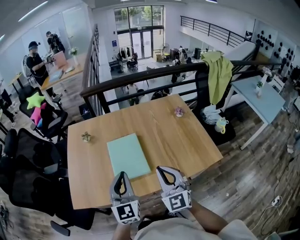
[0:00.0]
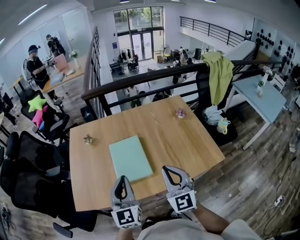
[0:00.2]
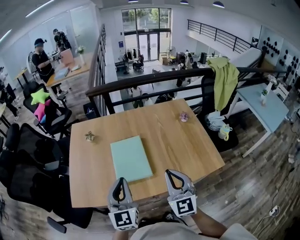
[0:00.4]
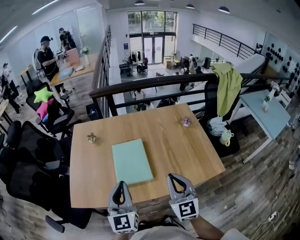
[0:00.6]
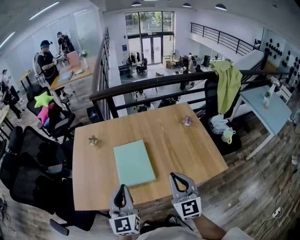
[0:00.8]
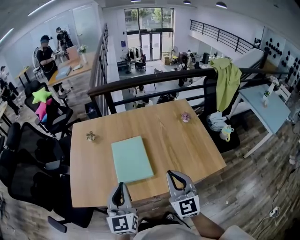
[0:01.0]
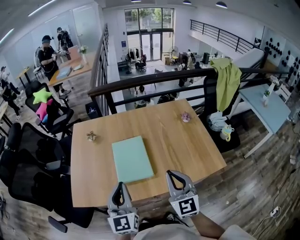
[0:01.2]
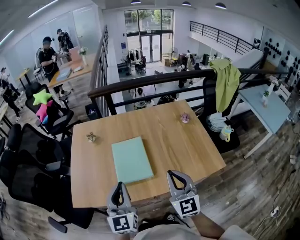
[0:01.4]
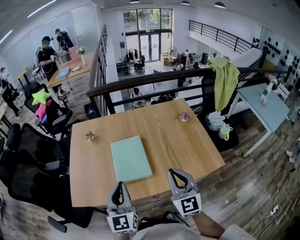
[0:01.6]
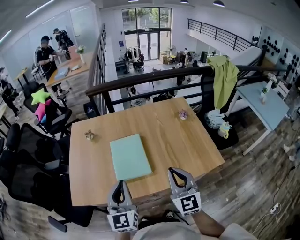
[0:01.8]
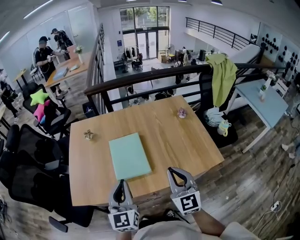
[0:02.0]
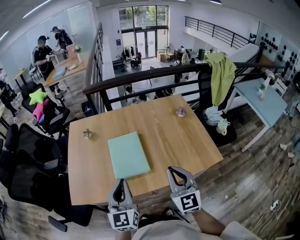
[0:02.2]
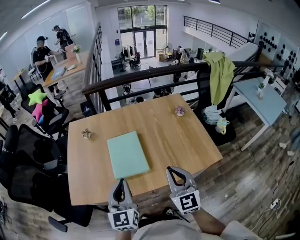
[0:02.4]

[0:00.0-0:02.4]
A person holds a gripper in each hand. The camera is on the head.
0.0 to 2.4 s: There are only small adjustments of the grippers.

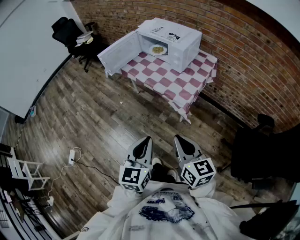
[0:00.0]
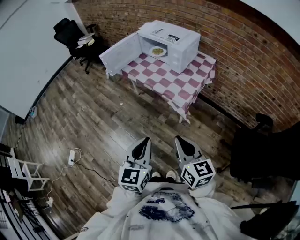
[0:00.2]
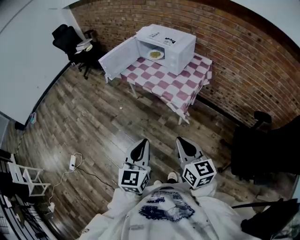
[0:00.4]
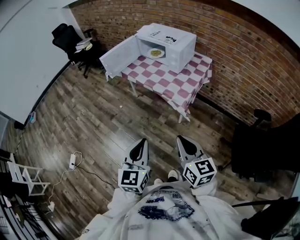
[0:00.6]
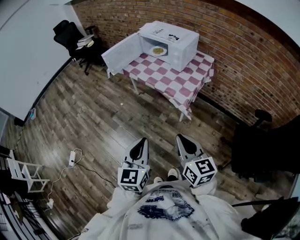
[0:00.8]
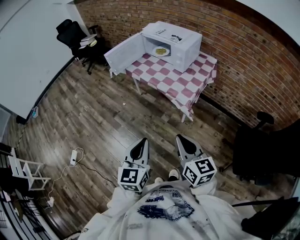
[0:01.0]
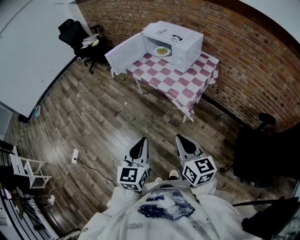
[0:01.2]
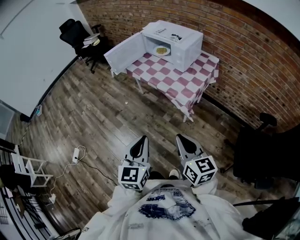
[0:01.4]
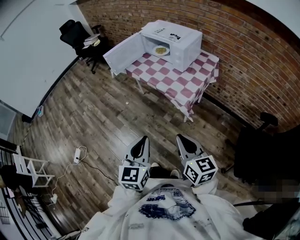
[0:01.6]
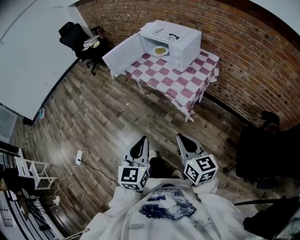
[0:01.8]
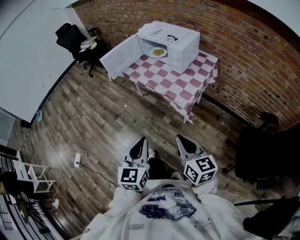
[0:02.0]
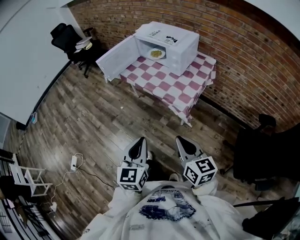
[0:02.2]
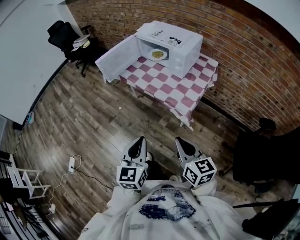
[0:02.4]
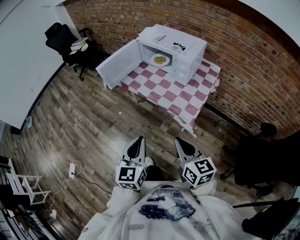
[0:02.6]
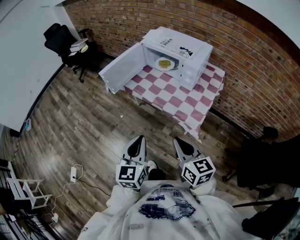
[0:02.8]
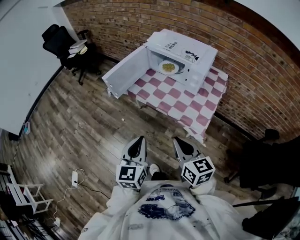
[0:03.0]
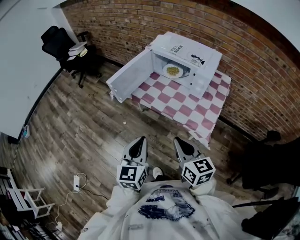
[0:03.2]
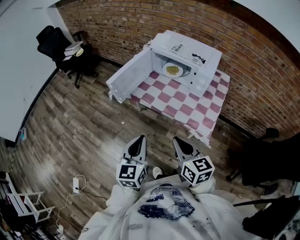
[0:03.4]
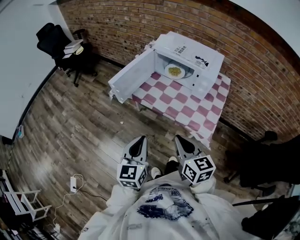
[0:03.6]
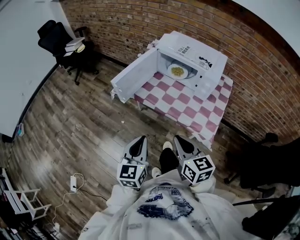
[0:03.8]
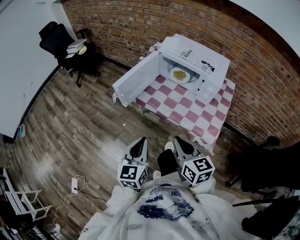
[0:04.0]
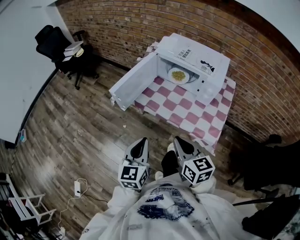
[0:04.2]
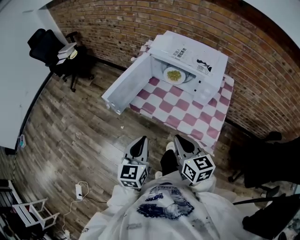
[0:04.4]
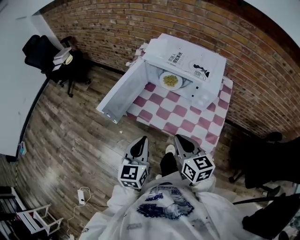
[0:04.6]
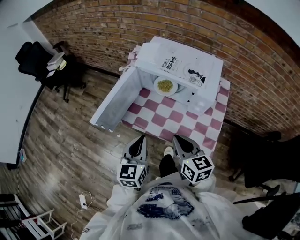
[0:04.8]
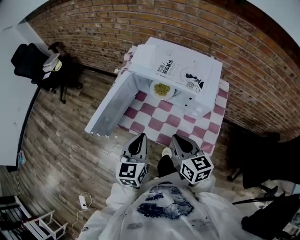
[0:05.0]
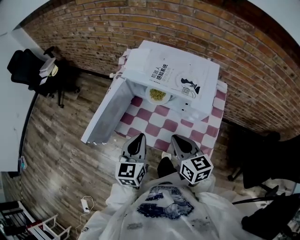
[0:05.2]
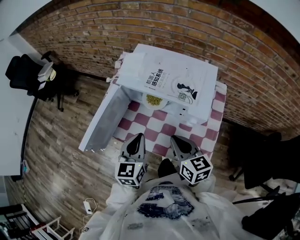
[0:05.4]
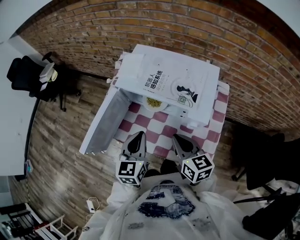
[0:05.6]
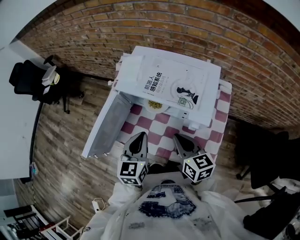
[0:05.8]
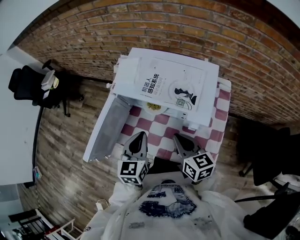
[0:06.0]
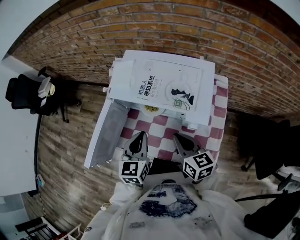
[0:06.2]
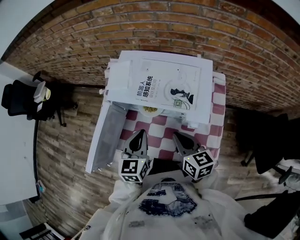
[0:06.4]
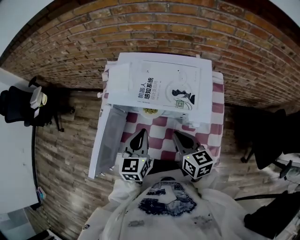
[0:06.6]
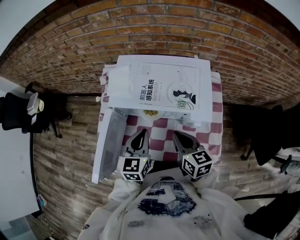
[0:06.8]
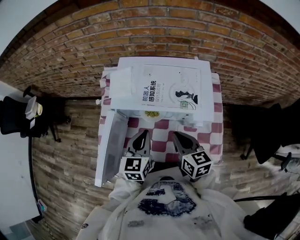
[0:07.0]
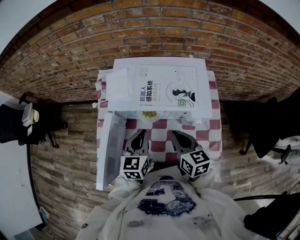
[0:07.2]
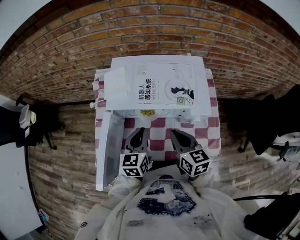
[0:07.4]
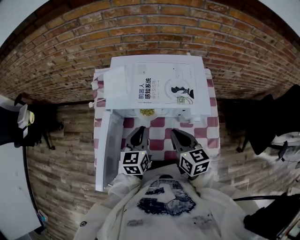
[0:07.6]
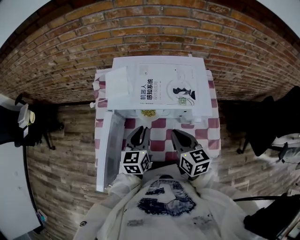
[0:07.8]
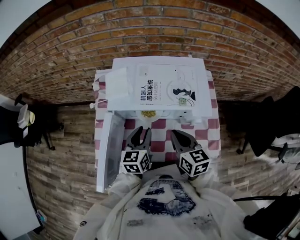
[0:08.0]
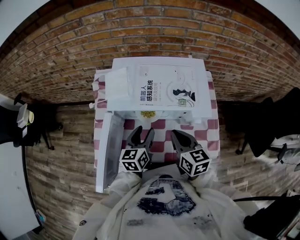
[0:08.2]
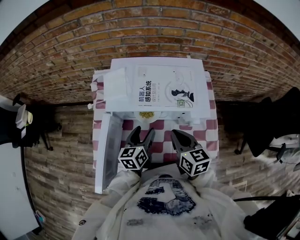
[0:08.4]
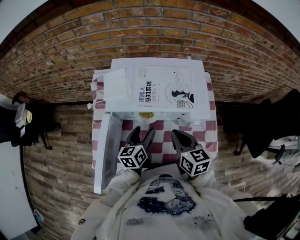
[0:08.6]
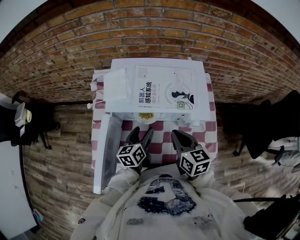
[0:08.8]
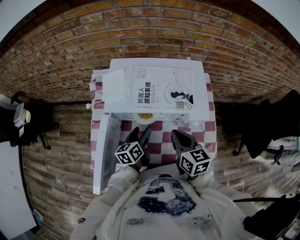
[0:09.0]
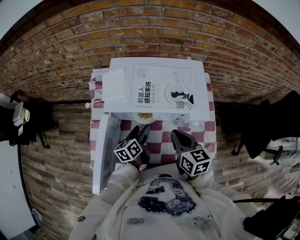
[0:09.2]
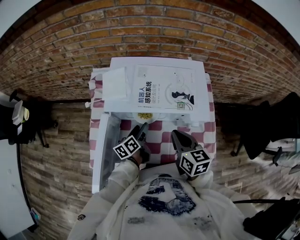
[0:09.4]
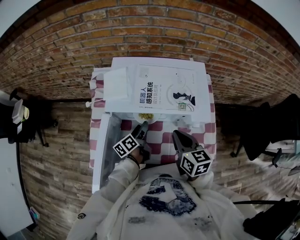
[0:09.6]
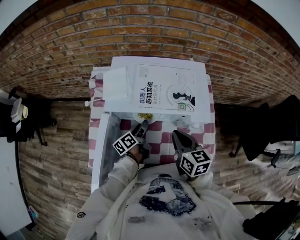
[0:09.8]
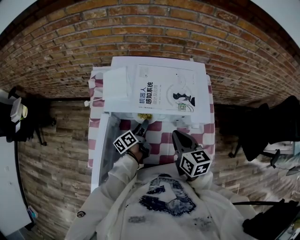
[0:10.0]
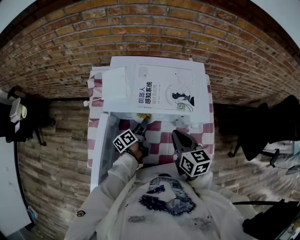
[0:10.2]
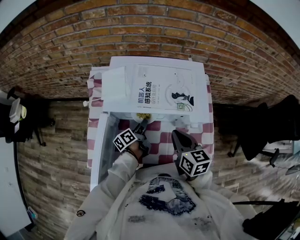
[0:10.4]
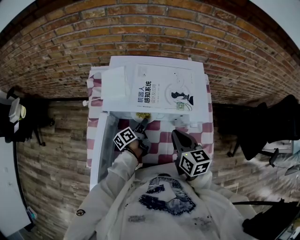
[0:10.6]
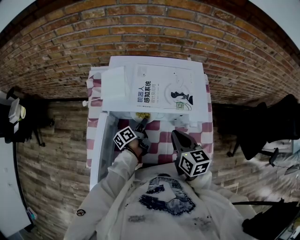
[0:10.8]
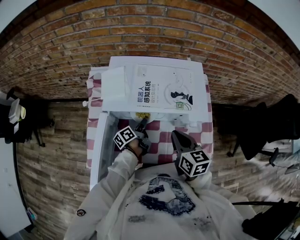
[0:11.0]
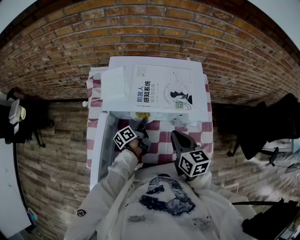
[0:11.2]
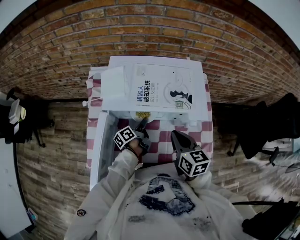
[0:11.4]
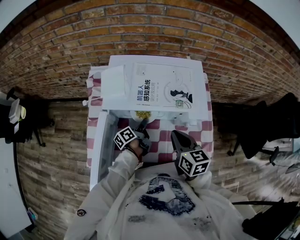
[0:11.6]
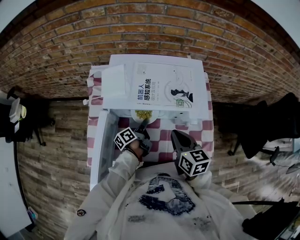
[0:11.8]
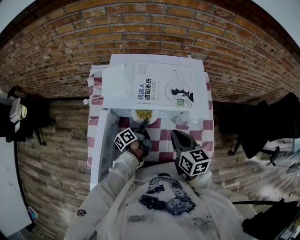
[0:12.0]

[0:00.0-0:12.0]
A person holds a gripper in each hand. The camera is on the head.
1.6 to 3.0 s: Both grippers travel together forward and to the left, approximately 30 cm.
3.0 to 4.4 s: The grippers both shift forward by approximately 15 cm.
4.4 to 6.0 s: The two grippers go some 30 cm forward and to the right.
6.0 to 7.6 s: The right gripper moves approximately 5 cm, and turns by about 20 degrees. Meanwhile the left gripper heads forward and downward, covering roughly 10 cm.
7.6 to 9.0 s: The left gripper goes about 10 cm downward, changes its angle by approximately 30 degrees, and opens.
9.0 to 10.4 s: The left gripper shifts roughly 5 cm downward, and swivels some 30 degrees.
10.4 to 12.0 s: The left gripper closes up.

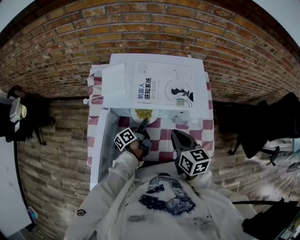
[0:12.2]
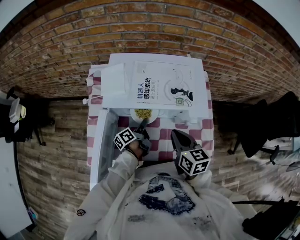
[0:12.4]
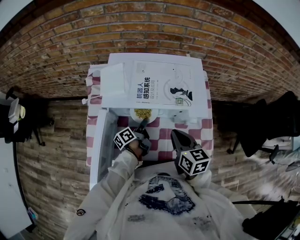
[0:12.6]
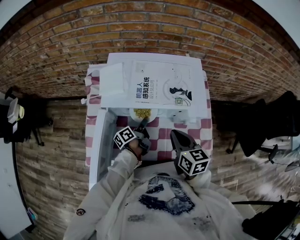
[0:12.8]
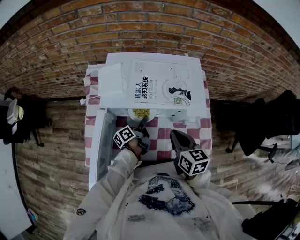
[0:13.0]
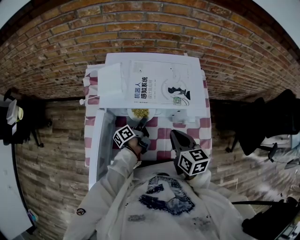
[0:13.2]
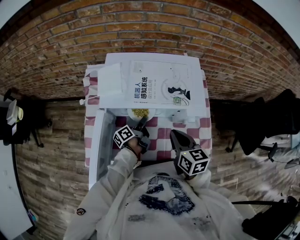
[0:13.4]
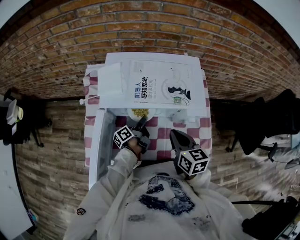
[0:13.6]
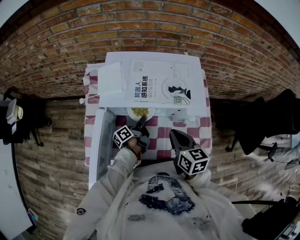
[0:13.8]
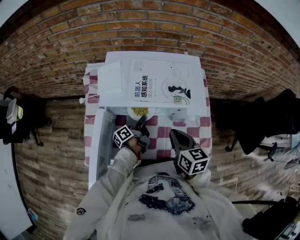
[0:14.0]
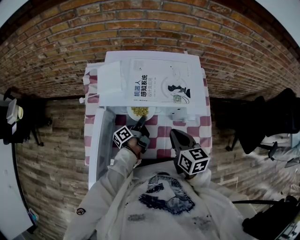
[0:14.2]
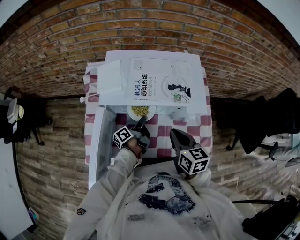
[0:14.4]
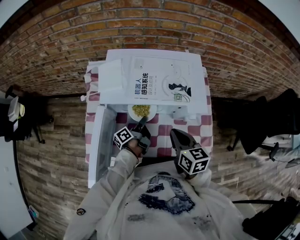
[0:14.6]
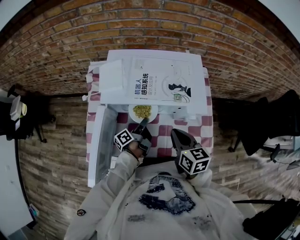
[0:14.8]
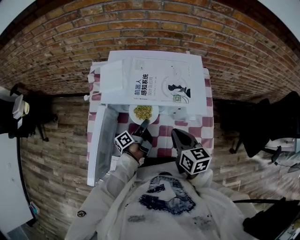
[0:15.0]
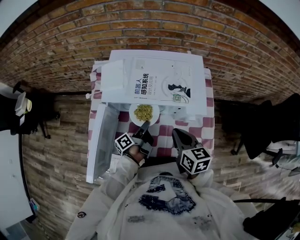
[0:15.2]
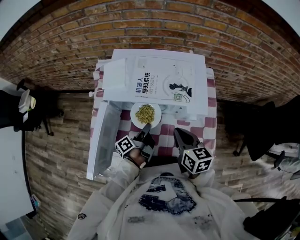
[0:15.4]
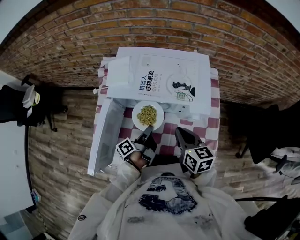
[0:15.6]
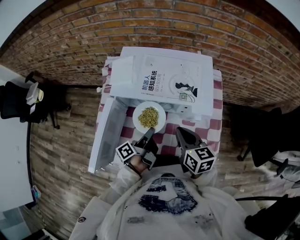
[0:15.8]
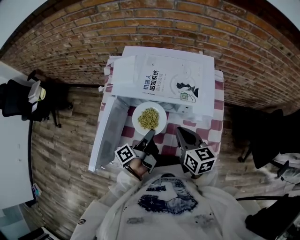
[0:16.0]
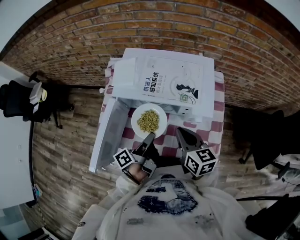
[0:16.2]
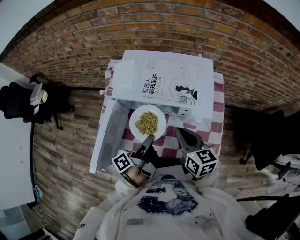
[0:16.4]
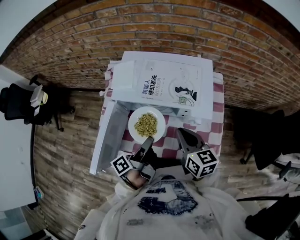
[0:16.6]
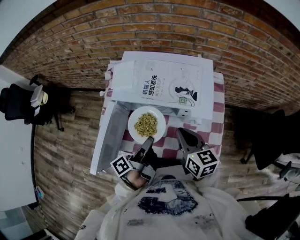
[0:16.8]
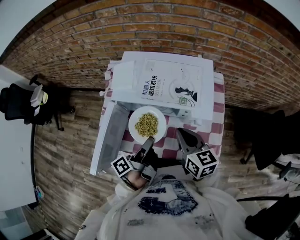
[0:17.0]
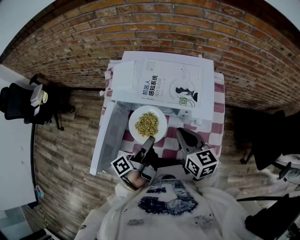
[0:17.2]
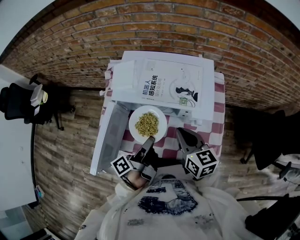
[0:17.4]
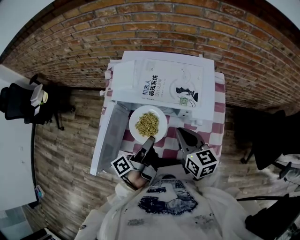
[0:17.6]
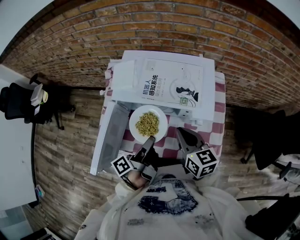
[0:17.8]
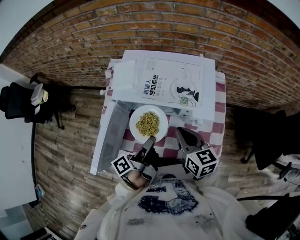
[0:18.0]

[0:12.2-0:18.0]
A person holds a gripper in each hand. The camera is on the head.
12.2 to 15.0 s: The grippers stay close to where they were, moving slightly.
15.0 to 16.6 s: The left gripper moves upward and backward, approximately 20 cm.
16.6 to 18.0 s: Both grippers stay about where they are.

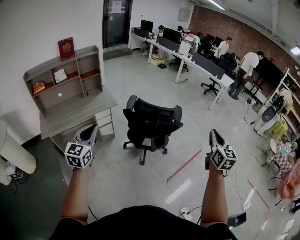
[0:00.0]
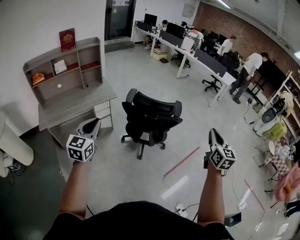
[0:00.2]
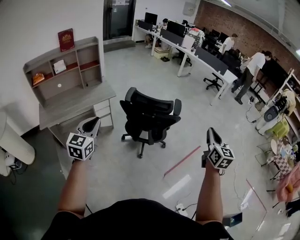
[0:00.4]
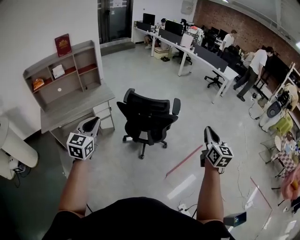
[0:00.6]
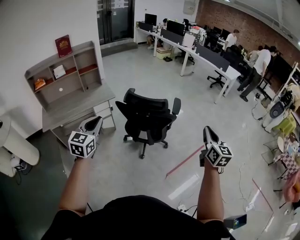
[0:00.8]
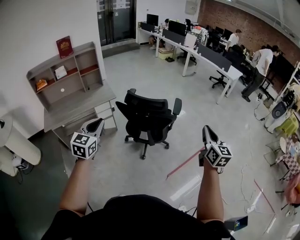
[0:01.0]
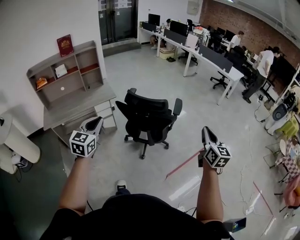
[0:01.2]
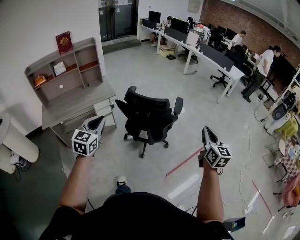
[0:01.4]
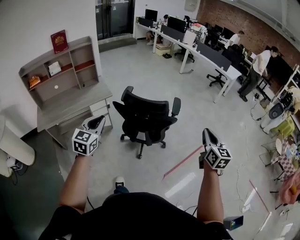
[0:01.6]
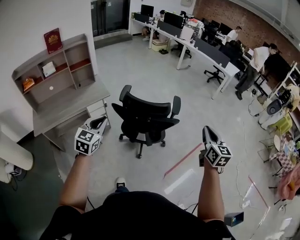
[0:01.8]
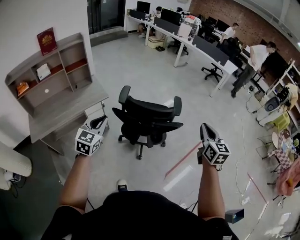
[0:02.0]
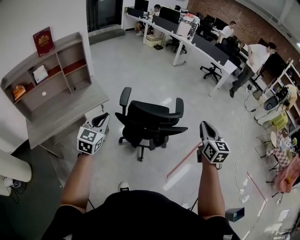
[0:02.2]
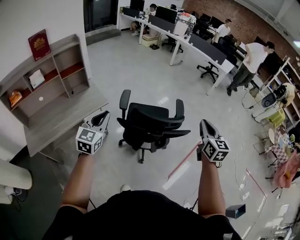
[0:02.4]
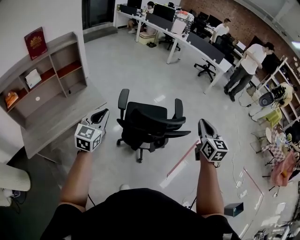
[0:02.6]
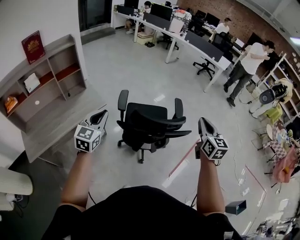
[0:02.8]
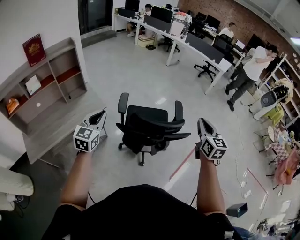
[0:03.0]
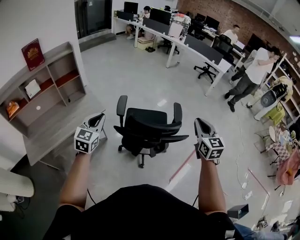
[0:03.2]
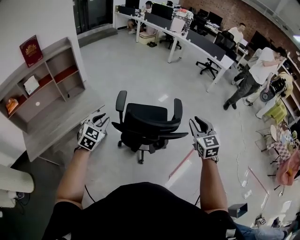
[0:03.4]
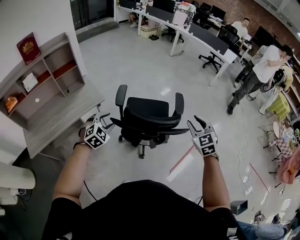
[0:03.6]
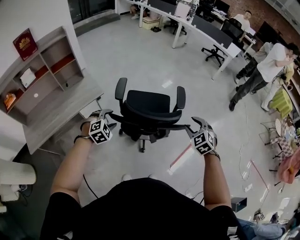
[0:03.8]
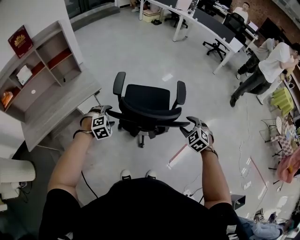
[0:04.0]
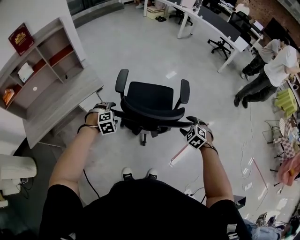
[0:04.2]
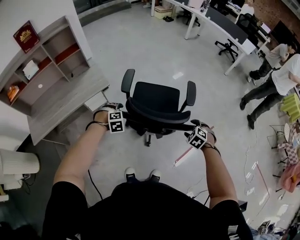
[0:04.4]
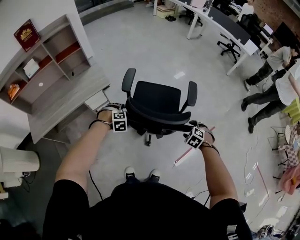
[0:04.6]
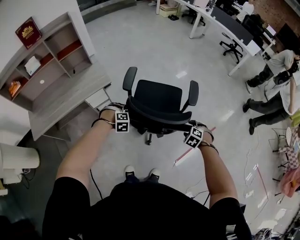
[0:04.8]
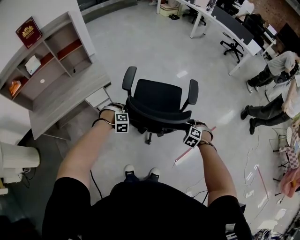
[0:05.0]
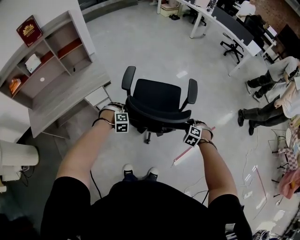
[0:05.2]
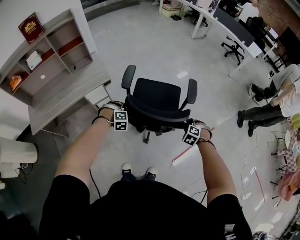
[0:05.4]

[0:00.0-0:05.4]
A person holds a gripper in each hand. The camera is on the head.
0.0 to 1.4 s: The left gripper shifts approximately 15 cm to the right and forward; the right gripper travels to the right, downward and forward by roughly 10 cm.
1.4 to 2.8 s: The left gripper is displaced forward and to the left by about 30 cm. The right gripper moves to the left and forward, about 30 cm.
2.8 to 4.0 s: Both grippers travel together downward, approximately 25 cm. The right gripper points its fingers roughly 40 degrees further downward, and opens; the left gripper points its fingers roughly 50 degrees further downward, and opens its fingers.
4.0 to 5.4 s: The two grippers go some 15 cm downward. The left gripper closes its fingers; the right gripper rotates approximately 30 degrees, and closes up.
